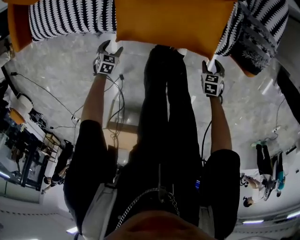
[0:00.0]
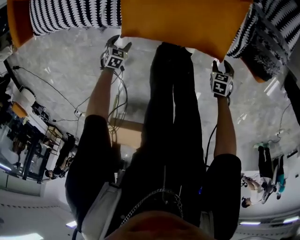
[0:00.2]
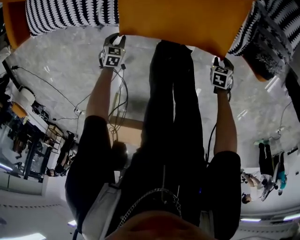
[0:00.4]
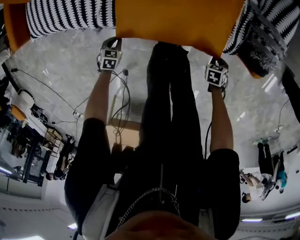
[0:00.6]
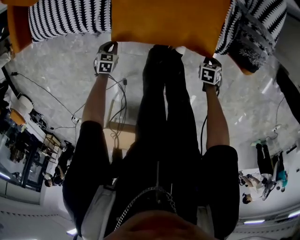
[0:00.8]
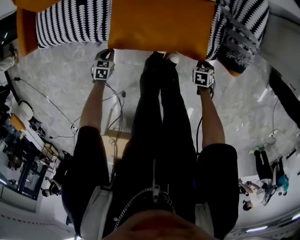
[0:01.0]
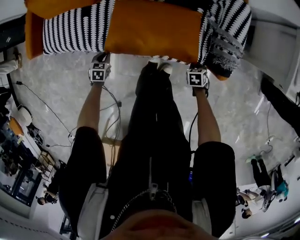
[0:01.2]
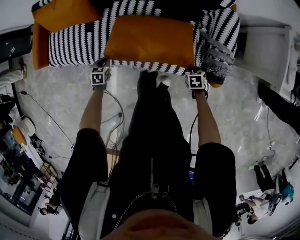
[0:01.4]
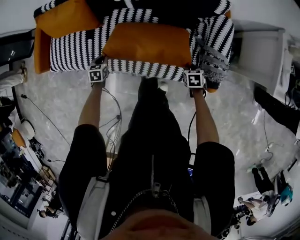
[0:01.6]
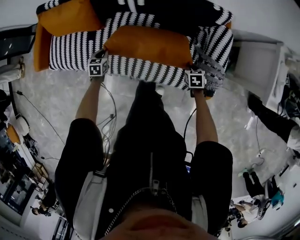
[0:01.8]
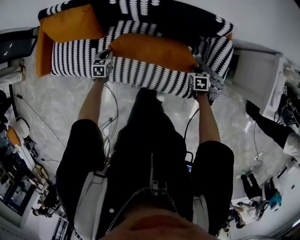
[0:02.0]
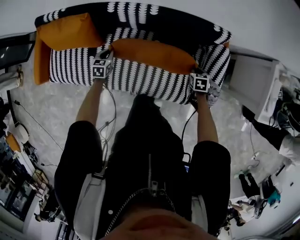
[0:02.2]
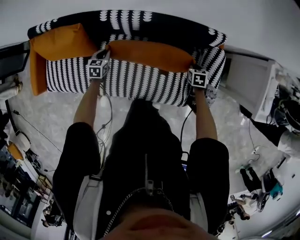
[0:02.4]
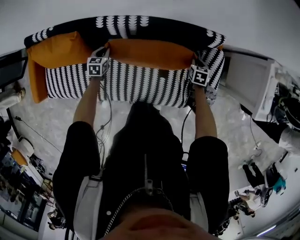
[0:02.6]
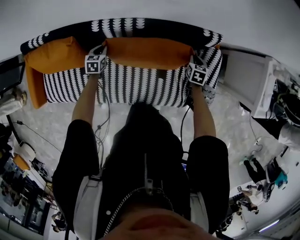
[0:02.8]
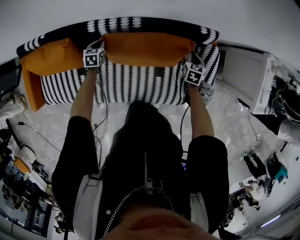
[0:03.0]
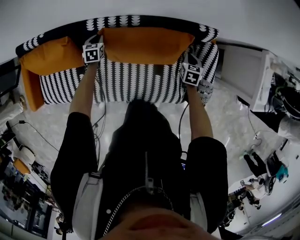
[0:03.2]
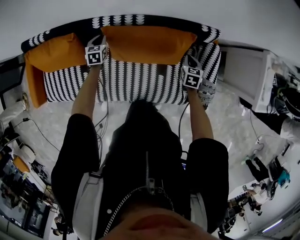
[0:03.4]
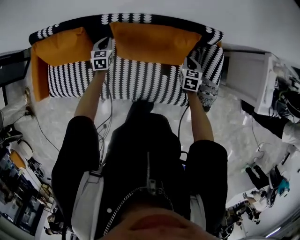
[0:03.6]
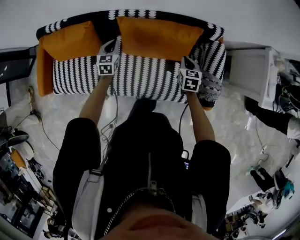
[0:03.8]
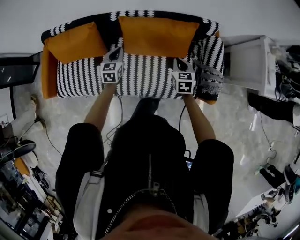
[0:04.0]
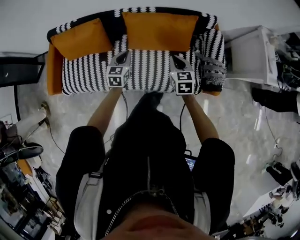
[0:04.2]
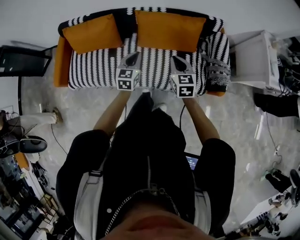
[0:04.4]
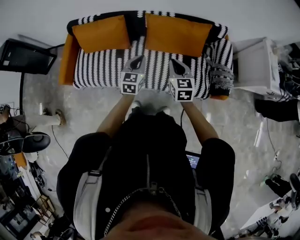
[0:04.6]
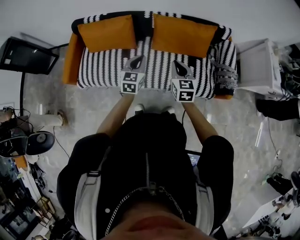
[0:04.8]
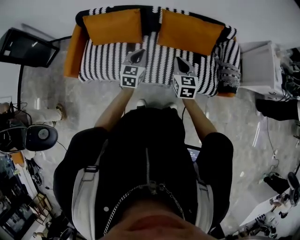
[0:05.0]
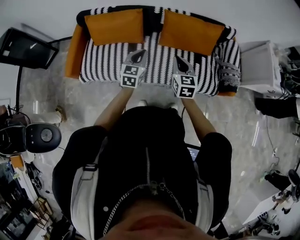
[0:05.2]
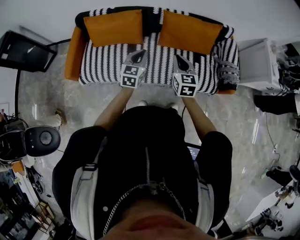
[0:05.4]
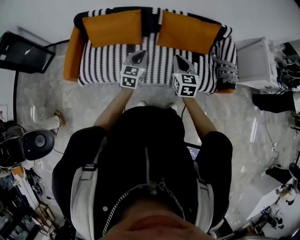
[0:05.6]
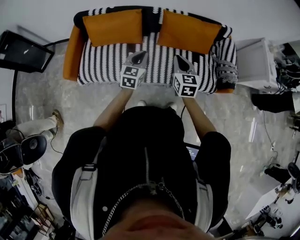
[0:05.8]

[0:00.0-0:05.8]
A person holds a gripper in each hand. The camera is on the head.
0:00.0 to 0:01.4: The left gripper shifts some 25 cm upward, turns by approximately 20 degrees, and closes its fingers. Meanwhile the right gripper moves upward, some 15 cm, and closes.
0:01.4 to 0:02.8: The left gripper ends up about 40 cm from where it was. Meanwhile the right gripper changes place by roughly 40 cm, and changes its angle by about 30 degrees.
0:02.8 to 0:04.4: The right gripper is displaced backward, to the left and upward by roughly 50 cm, and turns by some 40 degrees. The left gripper moves backward and upward, roughly 40 cm, and rotates some 30 degrees.
0:04.4 to 0:05.8: The two grippers go some 25 cm to the left and backward.

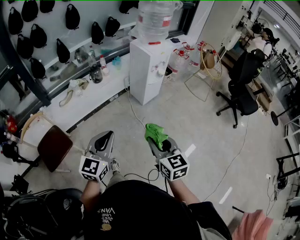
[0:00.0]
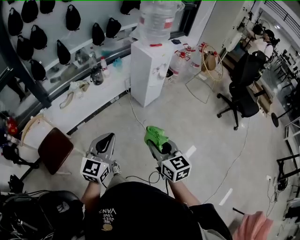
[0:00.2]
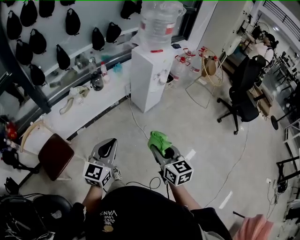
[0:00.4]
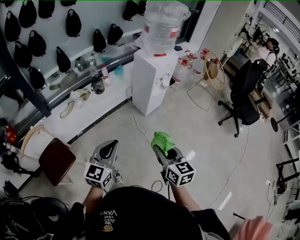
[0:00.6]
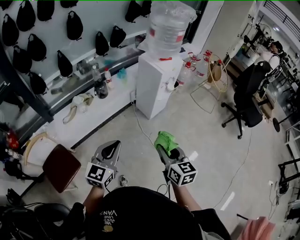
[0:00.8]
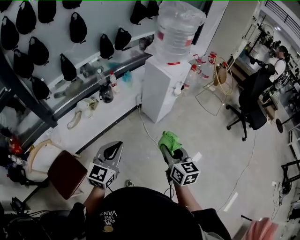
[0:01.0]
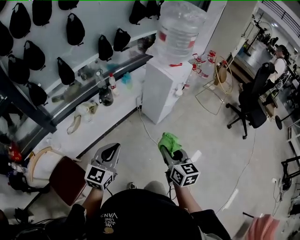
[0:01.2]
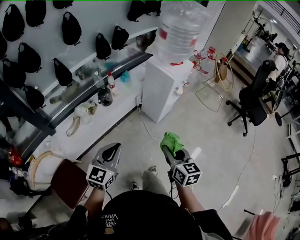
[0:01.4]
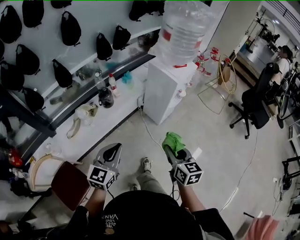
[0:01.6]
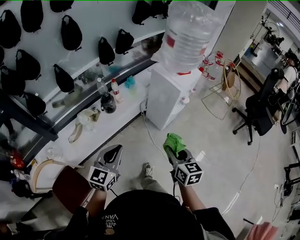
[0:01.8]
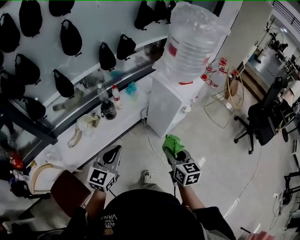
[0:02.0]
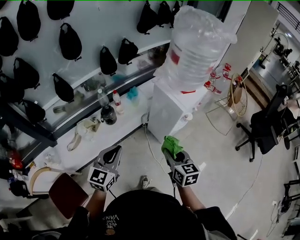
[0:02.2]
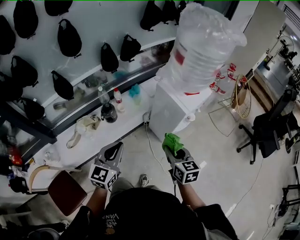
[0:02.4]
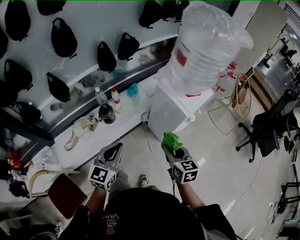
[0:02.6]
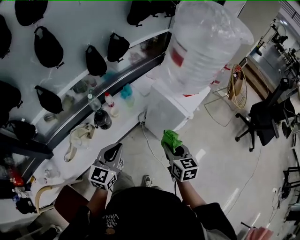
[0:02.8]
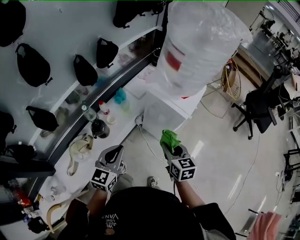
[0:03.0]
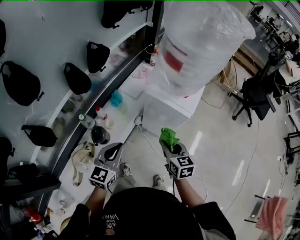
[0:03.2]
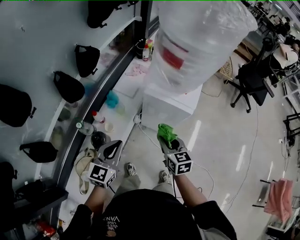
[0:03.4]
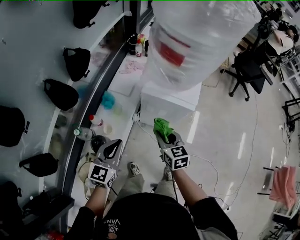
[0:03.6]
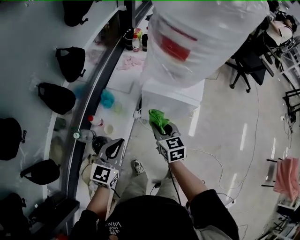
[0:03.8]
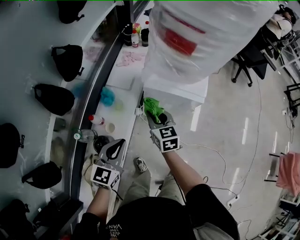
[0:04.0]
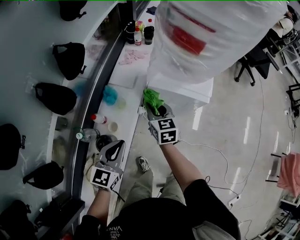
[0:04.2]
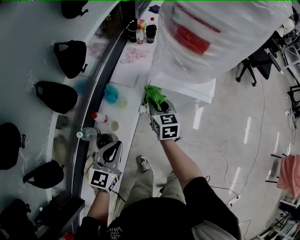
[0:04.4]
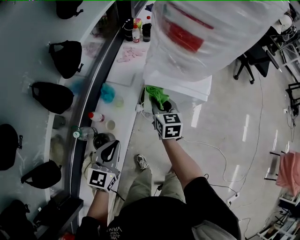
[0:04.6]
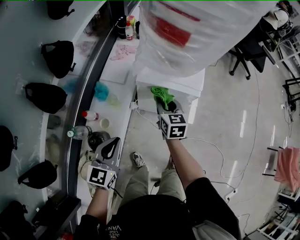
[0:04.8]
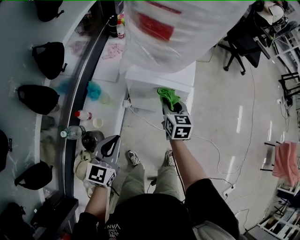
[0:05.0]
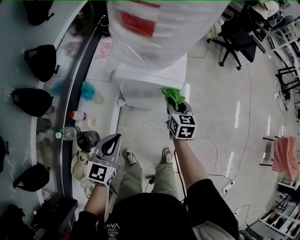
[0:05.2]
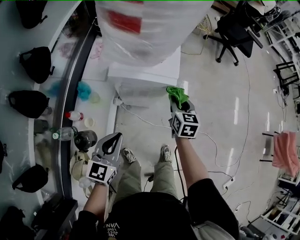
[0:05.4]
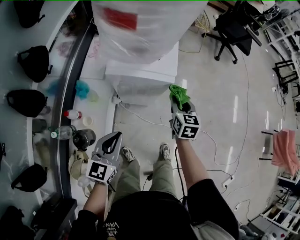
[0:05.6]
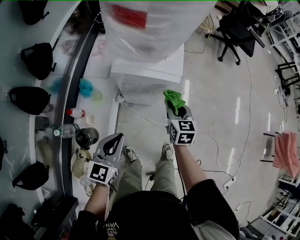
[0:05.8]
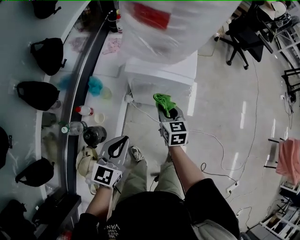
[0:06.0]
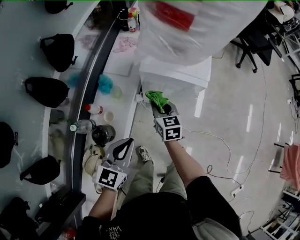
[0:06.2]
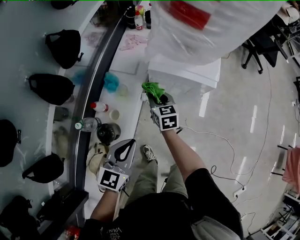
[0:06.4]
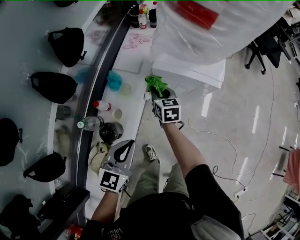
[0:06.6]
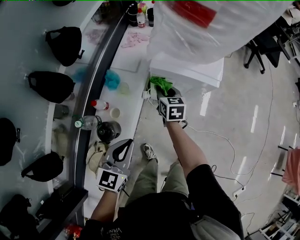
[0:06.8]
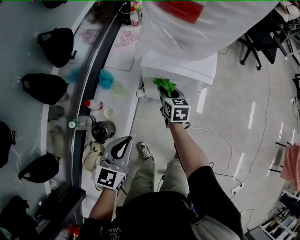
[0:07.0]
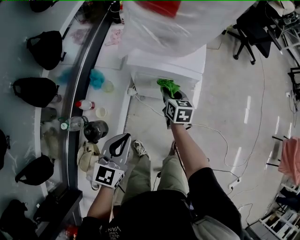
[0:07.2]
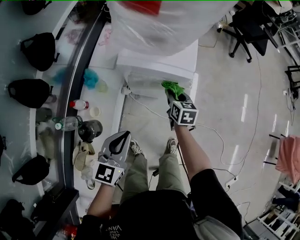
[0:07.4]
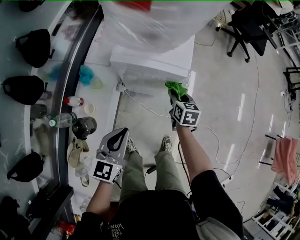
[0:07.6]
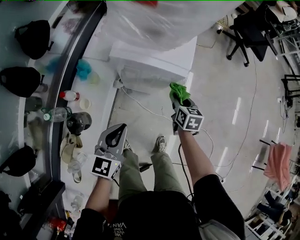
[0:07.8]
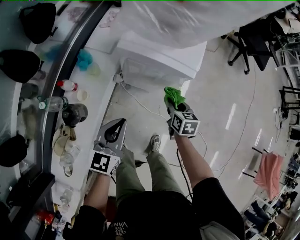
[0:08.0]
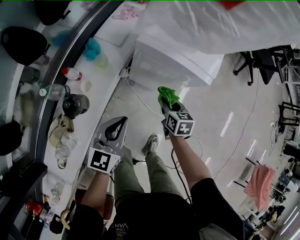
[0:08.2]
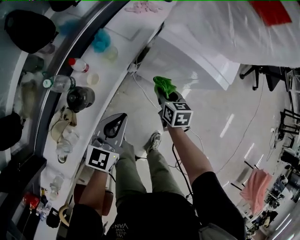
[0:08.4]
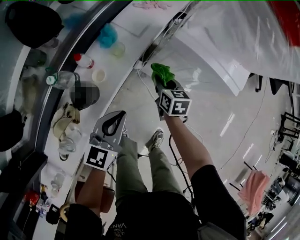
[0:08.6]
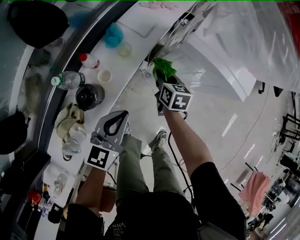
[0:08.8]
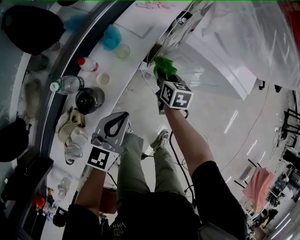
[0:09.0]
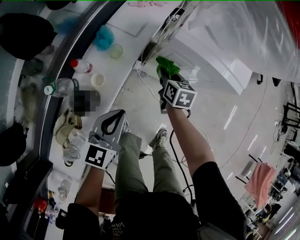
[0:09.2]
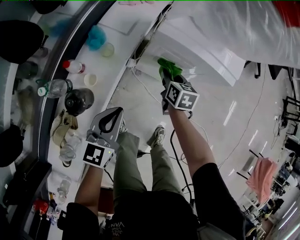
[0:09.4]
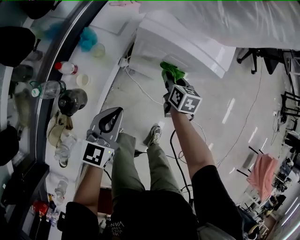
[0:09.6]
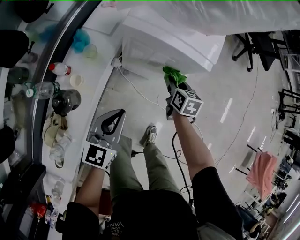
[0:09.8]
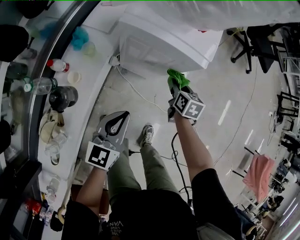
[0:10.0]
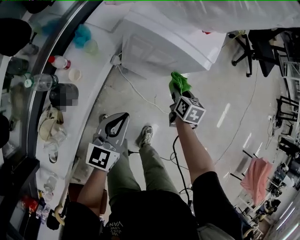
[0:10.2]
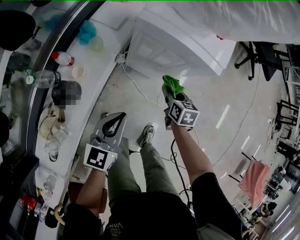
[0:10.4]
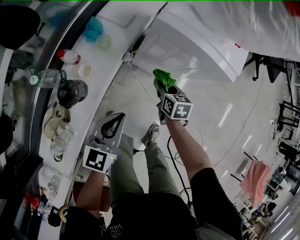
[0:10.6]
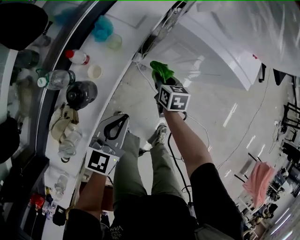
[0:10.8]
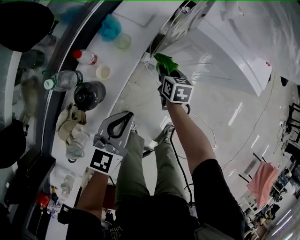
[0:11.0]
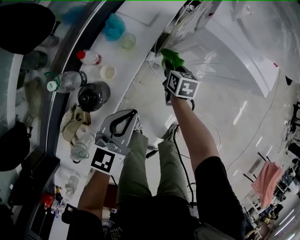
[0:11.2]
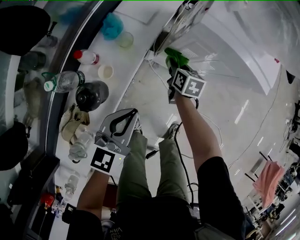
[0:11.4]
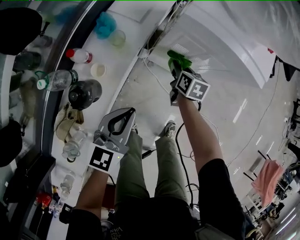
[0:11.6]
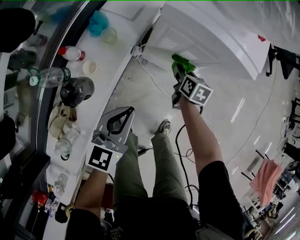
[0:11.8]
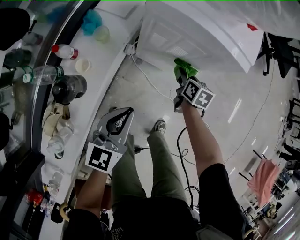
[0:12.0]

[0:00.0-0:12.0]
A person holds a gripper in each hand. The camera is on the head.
0:00.0 to 0:01.6: The grippers both shift forward and to the left by approximately 30 cm.
0:01.6 to 0:03.0: The grippers both shift forward by some 30 cm.
0:03.0 to 0:04.4: Both grippers travel together forward, to the left and downward, approximately 25 cm. The right gripper swivels roughly 20 degrees.
0:04.4 to 0:06.0: Both grippers move to the right, about 15 cm.
0:06.0 to 0:07.6: The left gripper moves approximately 5 cm. Meanwhile the right gripper moves to the right and downward, some 15 cm.
0:07.6 to 0:09.0: The left gripper is displaced to the left and downward by approximately 15 cm, while the right gripper goes roughly 25 cm to the left.
0:09.0 to 0:10.4: The right gripper moves to the right, approximately 20 cm, while the left gripper shifts roughly 10 cm to the right.
0:10.4 to 0:12.0: The right gripper travels downward and forward by about 10 cm, and reaches roughly 20 cm to the left, then returns. The left gripper reaches about 10 cm to the left, then returns.

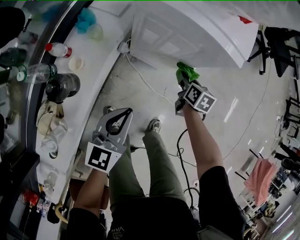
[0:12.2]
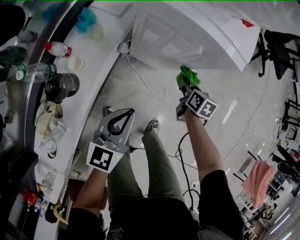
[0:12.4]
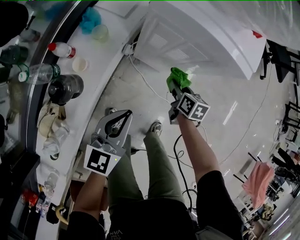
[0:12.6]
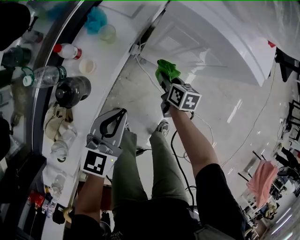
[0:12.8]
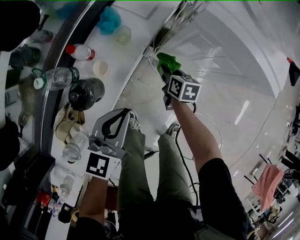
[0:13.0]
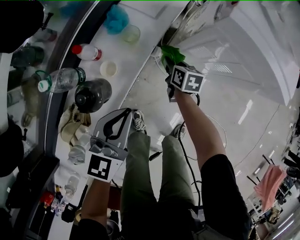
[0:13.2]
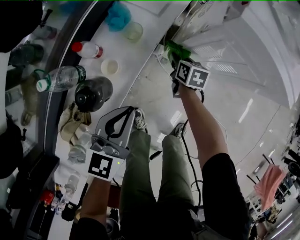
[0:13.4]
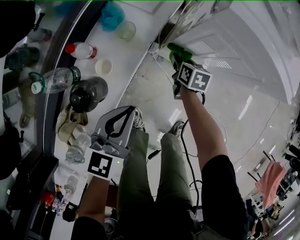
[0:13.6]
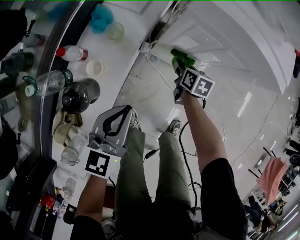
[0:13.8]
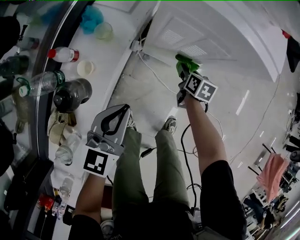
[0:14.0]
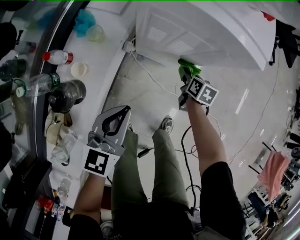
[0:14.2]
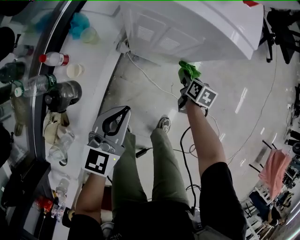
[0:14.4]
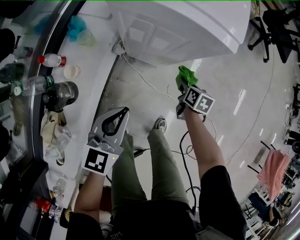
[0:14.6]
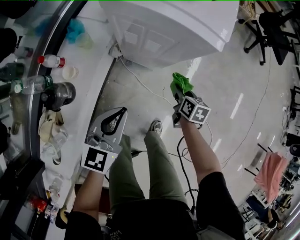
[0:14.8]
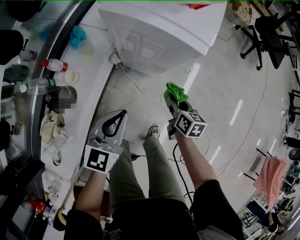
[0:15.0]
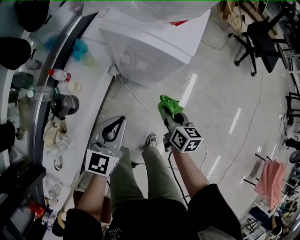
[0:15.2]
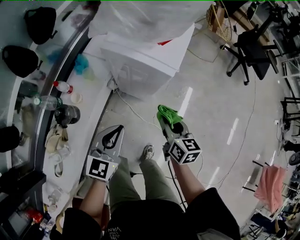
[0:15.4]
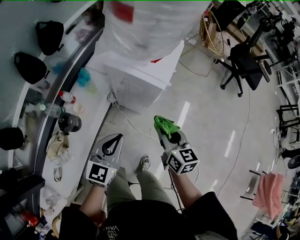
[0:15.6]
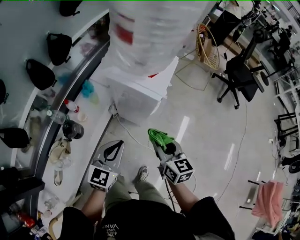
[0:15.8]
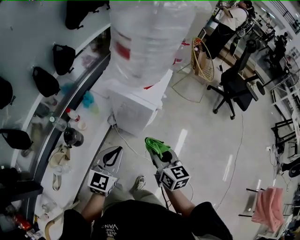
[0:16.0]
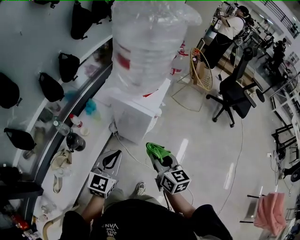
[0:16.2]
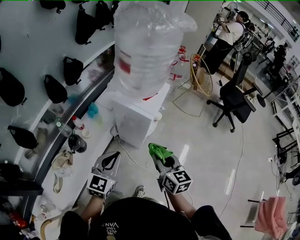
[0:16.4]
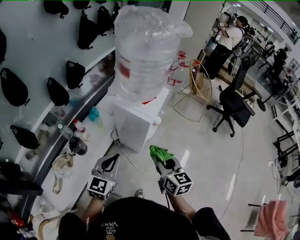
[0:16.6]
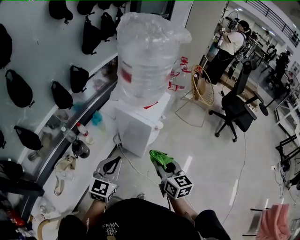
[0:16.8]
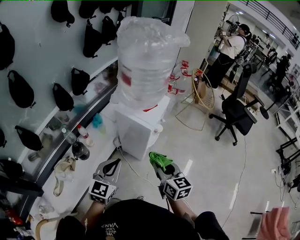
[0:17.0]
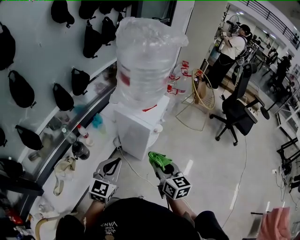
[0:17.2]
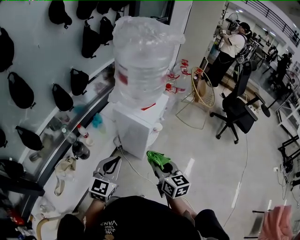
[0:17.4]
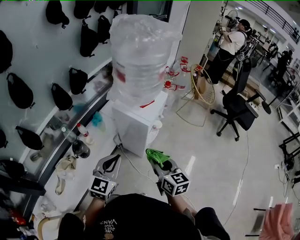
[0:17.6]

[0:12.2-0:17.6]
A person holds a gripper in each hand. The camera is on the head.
0:12.2 to 0:13.6: Both grippers travel together to the left, some 15 cm.
0:13.6 to 0:15.0: The right gripper goes some 30 cm to the right, backward and upward. Meanwhile the left gripper goes some 20 cm to the right.
0:15.0 to 0:16.2: The left gripper goes roughly 20 cm upward, while the right gripper moves upward, some 35 cm, and swivels roughly 30 degrees.
0:16.2 to 0:17.6: The left gripper changes place by roughly 5 cm.
